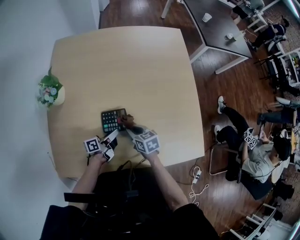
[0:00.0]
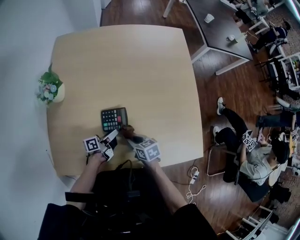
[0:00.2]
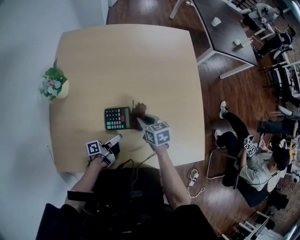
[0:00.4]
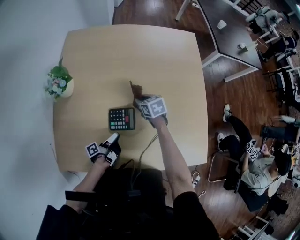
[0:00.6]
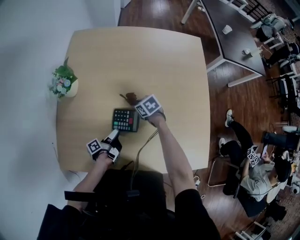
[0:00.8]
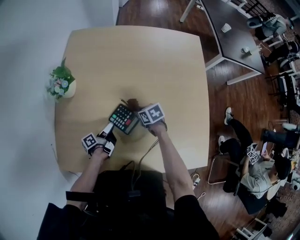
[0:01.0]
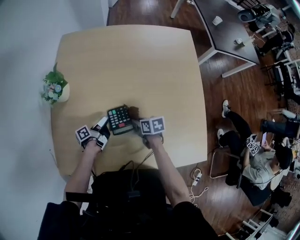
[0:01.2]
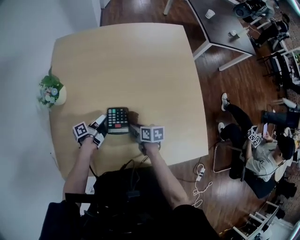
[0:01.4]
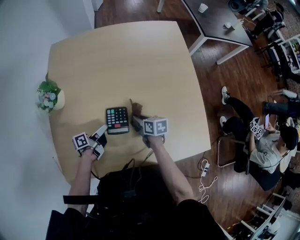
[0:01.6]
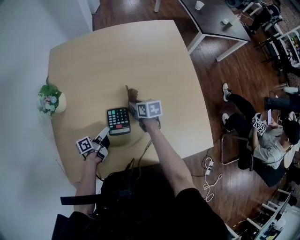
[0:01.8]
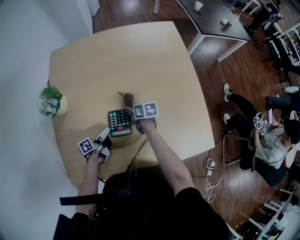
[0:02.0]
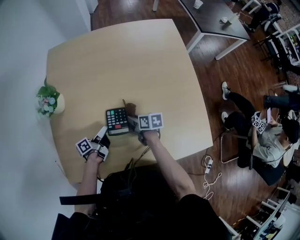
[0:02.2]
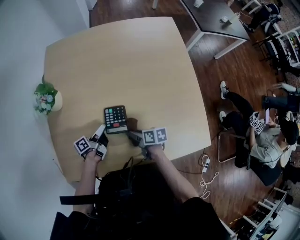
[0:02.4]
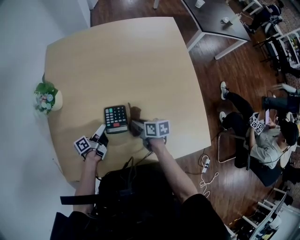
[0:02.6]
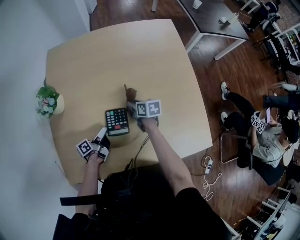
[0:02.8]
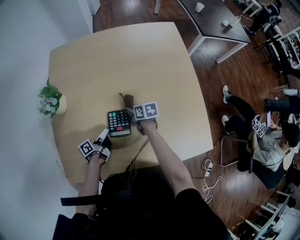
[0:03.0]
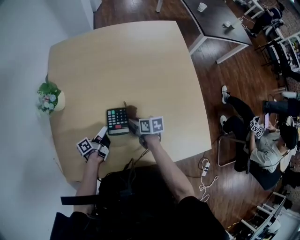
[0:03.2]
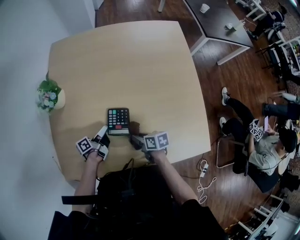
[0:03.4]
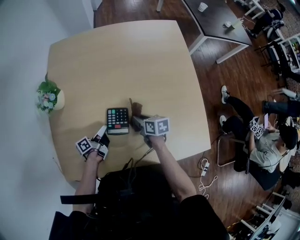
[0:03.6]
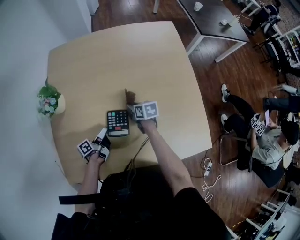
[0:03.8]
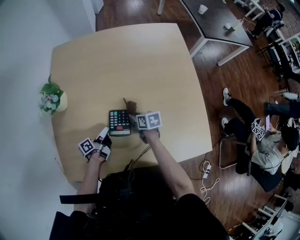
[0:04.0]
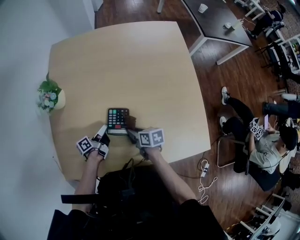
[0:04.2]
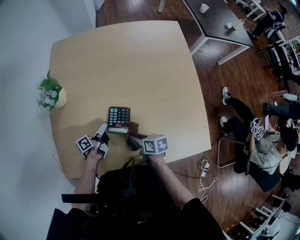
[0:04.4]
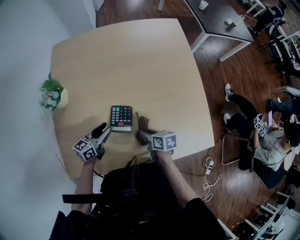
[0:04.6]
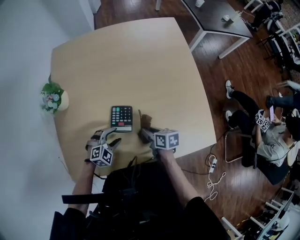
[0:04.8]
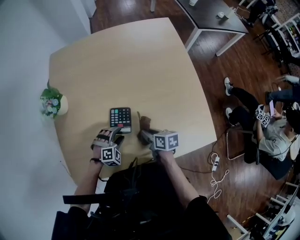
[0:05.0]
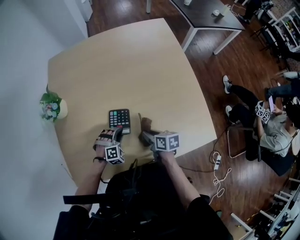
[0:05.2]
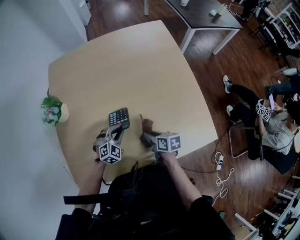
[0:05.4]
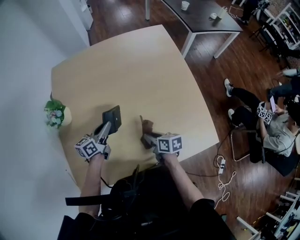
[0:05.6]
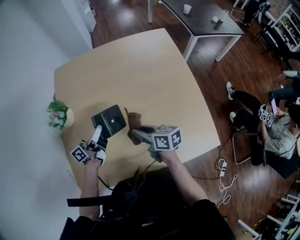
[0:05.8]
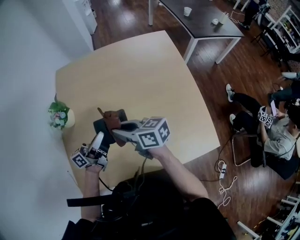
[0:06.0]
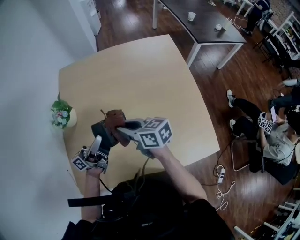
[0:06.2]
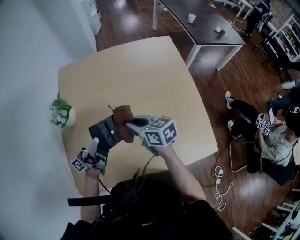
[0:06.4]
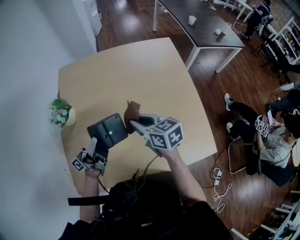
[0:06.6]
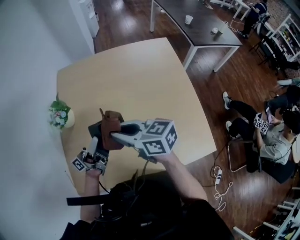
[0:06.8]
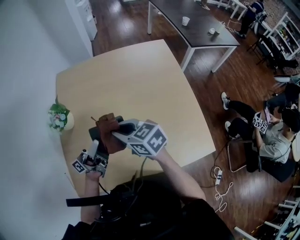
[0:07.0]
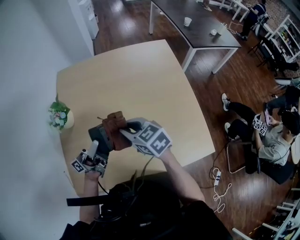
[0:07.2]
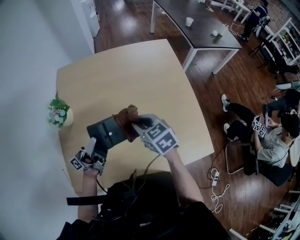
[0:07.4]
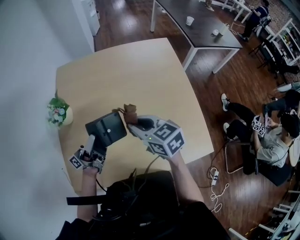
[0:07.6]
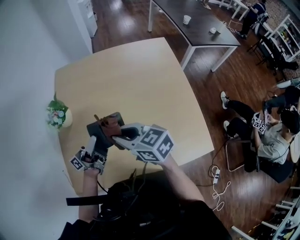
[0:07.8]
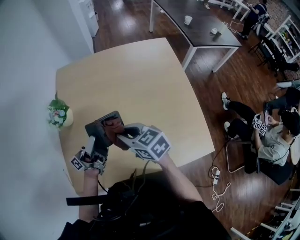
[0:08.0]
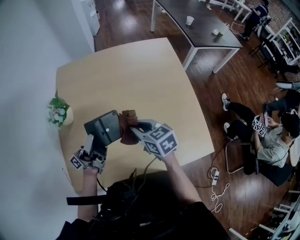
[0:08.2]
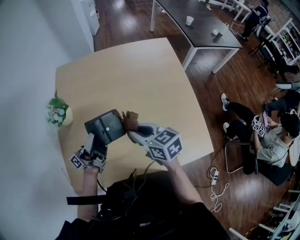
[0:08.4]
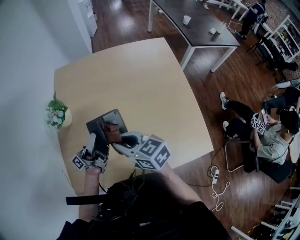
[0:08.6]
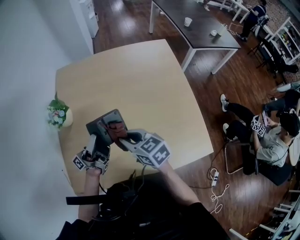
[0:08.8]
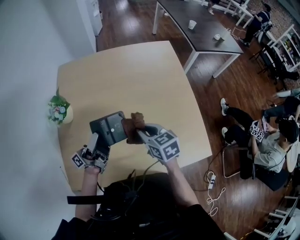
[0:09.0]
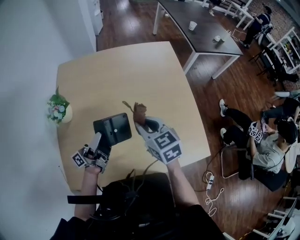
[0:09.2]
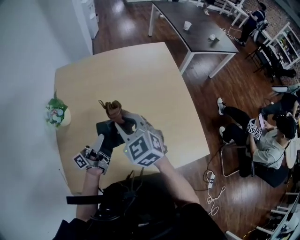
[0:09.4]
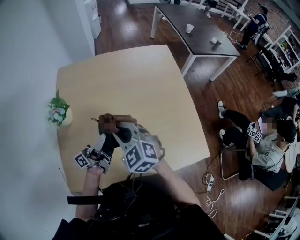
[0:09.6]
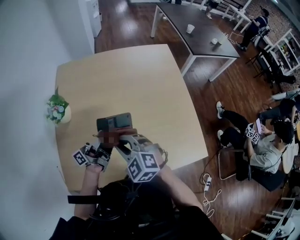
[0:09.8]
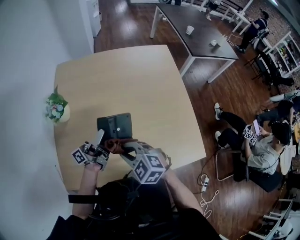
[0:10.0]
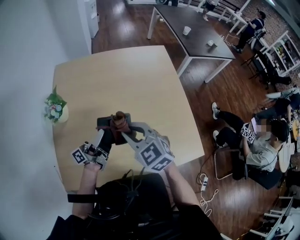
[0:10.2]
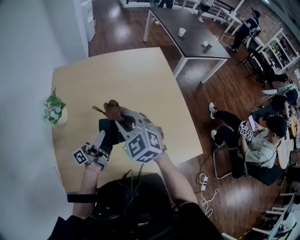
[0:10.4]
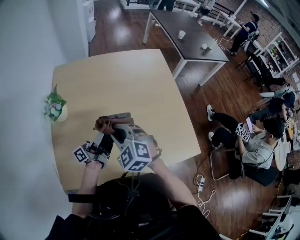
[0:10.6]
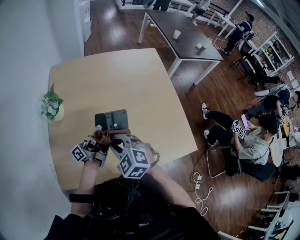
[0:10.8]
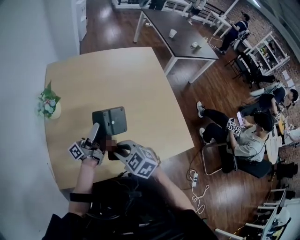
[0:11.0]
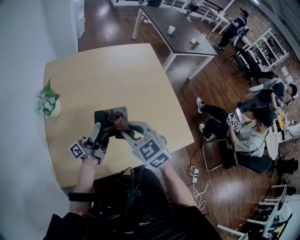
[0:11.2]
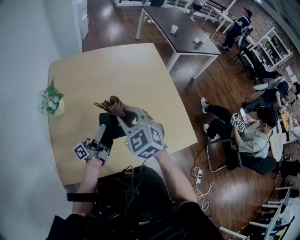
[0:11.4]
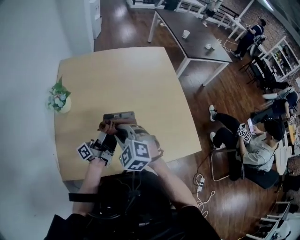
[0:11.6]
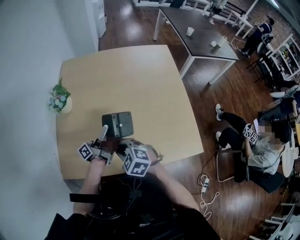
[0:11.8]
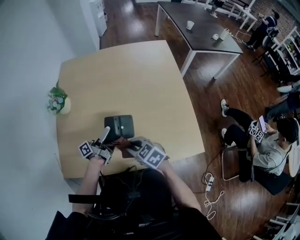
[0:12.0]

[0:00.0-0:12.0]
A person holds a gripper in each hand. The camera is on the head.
0:00.0 to 0:01.6: The right gripper swivels some 20 degrees.
0:01.6 to 0:03.0: The right gripper shifts by roughly 5 cm.
0:03.0 to 0:04.4: The right gripper moves about 15 cm.
0:04.4 to 0:06.0: The right gripper travels upward by about 20 cm, and changes its angle by about 30 degrees.
0:06.0 to 0:07.6: The right gripper swings up and down, approximately 10 cm each way, with 2 reversals, and turns by some 30 degrees.
0:07.6 to 0:09.0: The right gripper moves up and down over roughly 10 cm, changing direction 2 times.
0:09.0 to 0:10.4: The right gripper moves up and down over some 10 cm, changing direction 2 times, and rolls counterclockwise, seen from behind, by some 40 degrees.
0:10.4 to 0:12.0: The right gripper moves up and down over approximately 15 cm, changing direction 2 times, and rotates approximately 40 degrees.

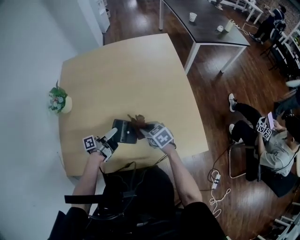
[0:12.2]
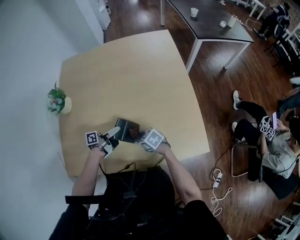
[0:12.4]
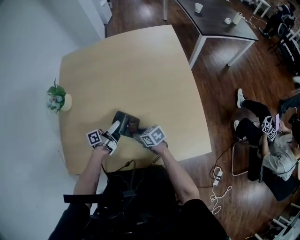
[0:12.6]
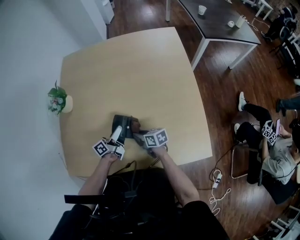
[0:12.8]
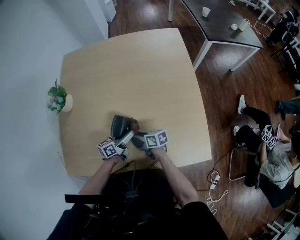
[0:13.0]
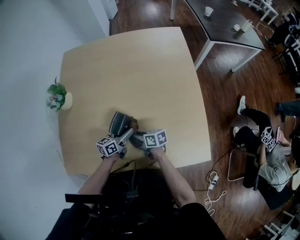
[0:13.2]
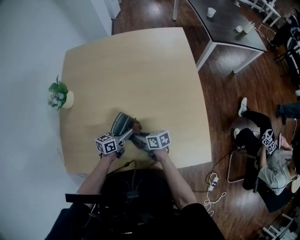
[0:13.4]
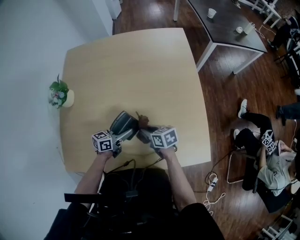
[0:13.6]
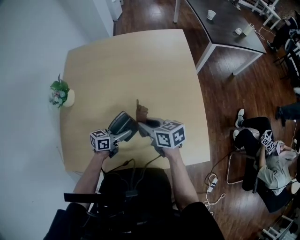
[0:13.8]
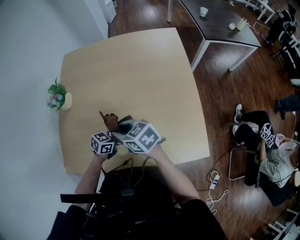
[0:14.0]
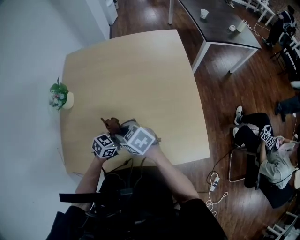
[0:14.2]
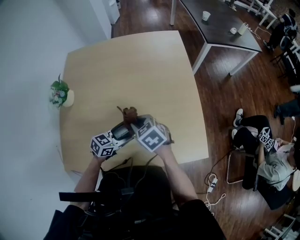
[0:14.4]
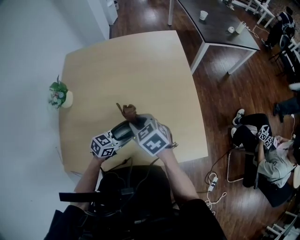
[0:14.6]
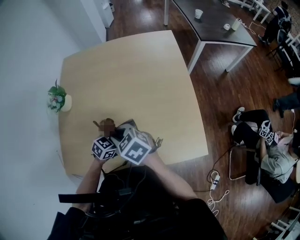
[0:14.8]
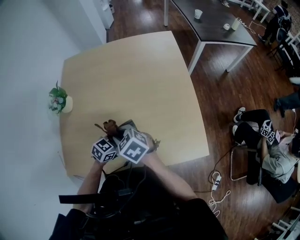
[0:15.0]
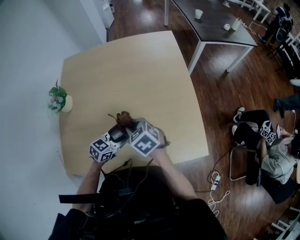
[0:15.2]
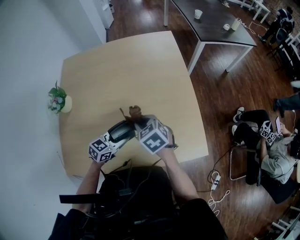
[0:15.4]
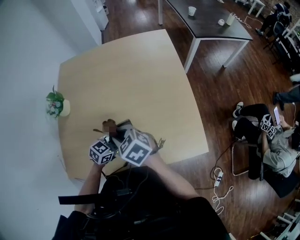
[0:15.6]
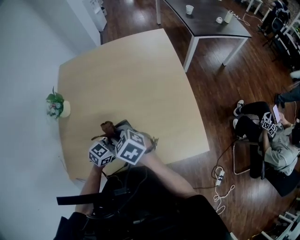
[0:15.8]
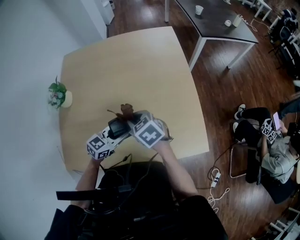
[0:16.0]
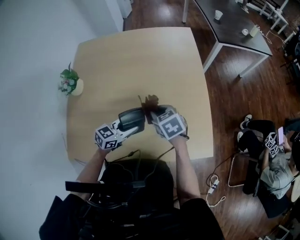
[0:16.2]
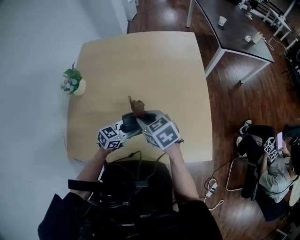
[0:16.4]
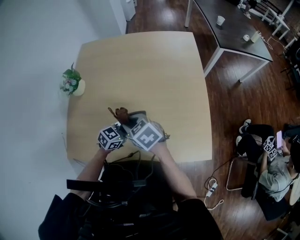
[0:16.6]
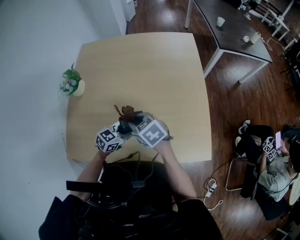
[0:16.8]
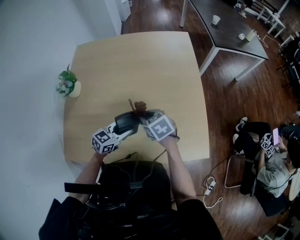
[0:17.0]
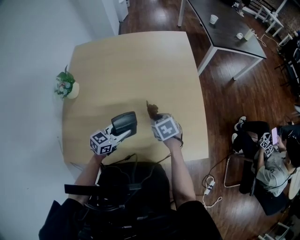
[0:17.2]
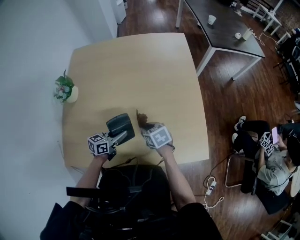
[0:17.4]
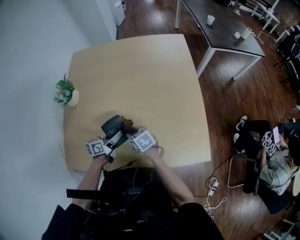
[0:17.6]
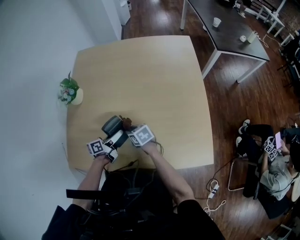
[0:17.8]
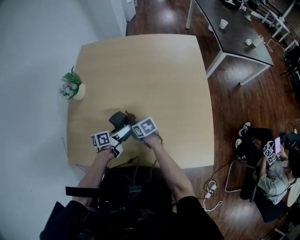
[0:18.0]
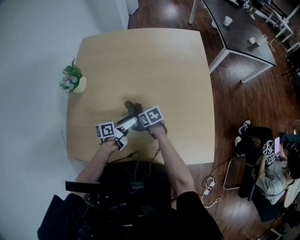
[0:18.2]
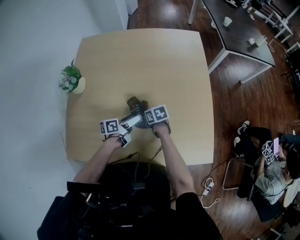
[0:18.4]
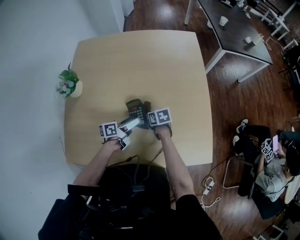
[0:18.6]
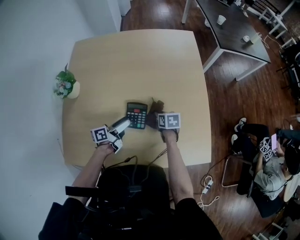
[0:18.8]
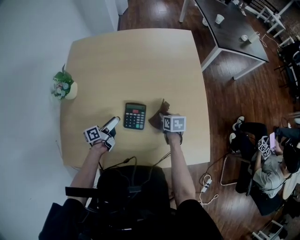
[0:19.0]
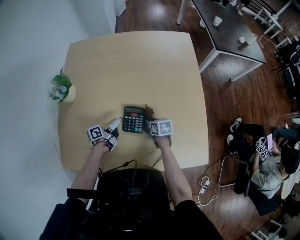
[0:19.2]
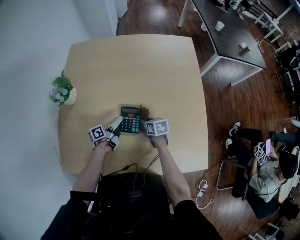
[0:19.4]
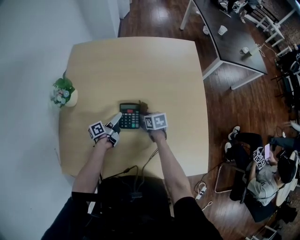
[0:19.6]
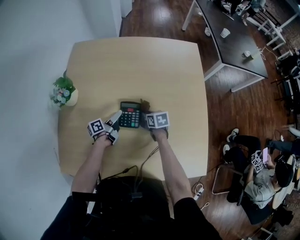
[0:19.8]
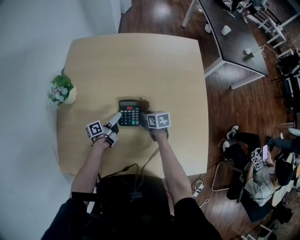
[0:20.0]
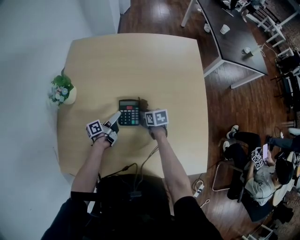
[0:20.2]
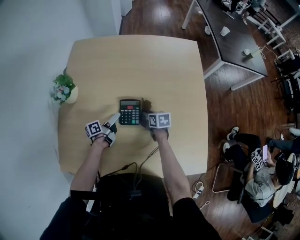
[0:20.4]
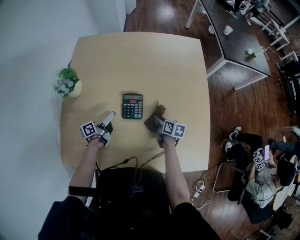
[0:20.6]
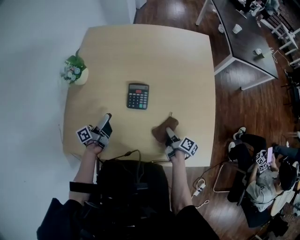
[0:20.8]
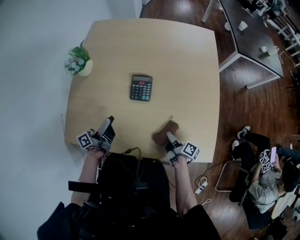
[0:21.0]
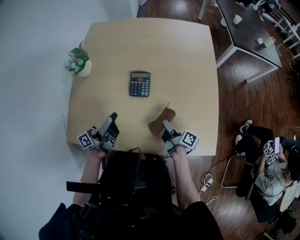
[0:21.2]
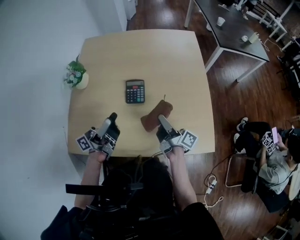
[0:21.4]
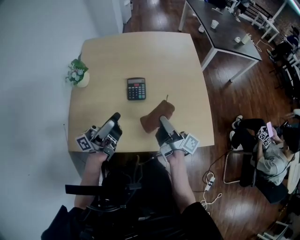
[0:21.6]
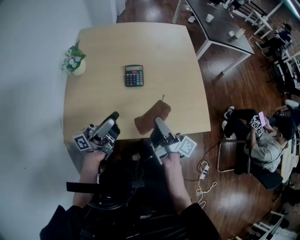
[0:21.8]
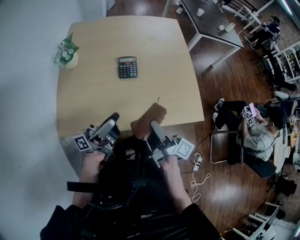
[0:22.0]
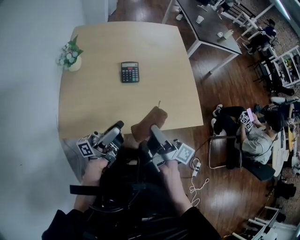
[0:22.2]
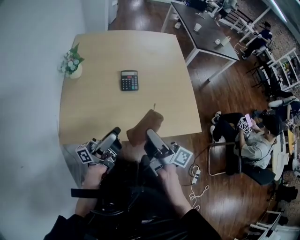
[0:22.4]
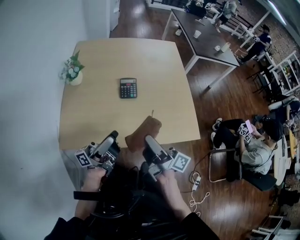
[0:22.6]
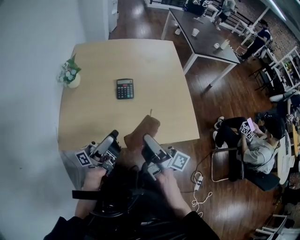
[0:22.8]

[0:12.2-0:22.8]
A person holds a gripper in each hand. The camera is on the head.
0:12.2 to 0:13.8: The right gripper travels upward by about 10 cm, and turns by roughly 30 degrees.
0:13.8 to 0:15.2: The right gripper goes up and down, some 5 cm each way, reversing 3 times, and changes its angle by roughly 40 degrees.
0:15.2 to 0:16.8: The right gripper moves up and down over roughly 5 cm, changing direction 2 times.
0:16.8 to 0:18.2: The right gripper moves downward, roughly 20 cm, and changes its angle by approximately 20 degrees.
0:18.2 to 0:19.8: The right gripper moves roughly 15 cm.
0:19.8 to 0:21.2: The right gripper shifts by roughly 25 cm, and tilts its fingers about 40 degrees upward.
0:21.2 to 0:22.8: The right gripper shifts about 25 cm upward, and rotates about 30 degrees.

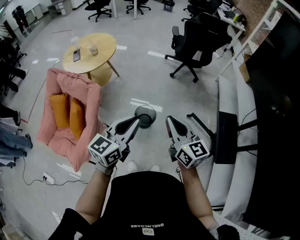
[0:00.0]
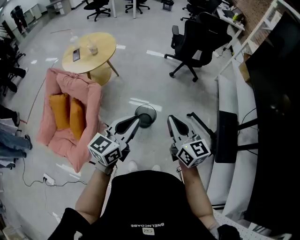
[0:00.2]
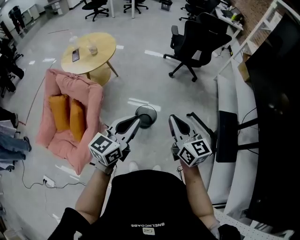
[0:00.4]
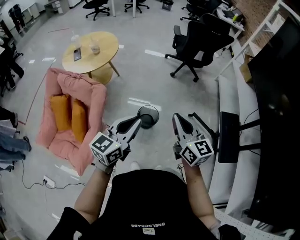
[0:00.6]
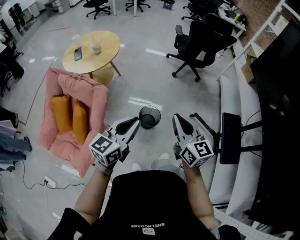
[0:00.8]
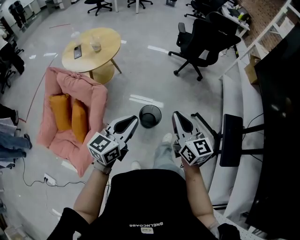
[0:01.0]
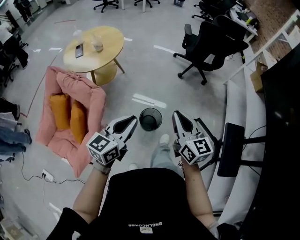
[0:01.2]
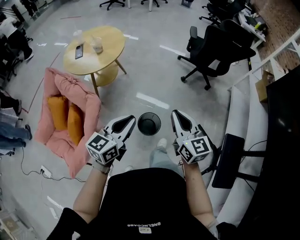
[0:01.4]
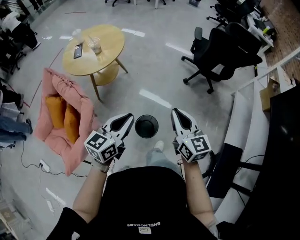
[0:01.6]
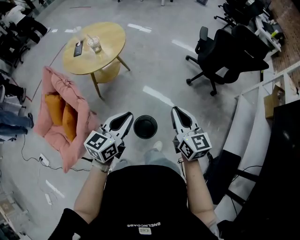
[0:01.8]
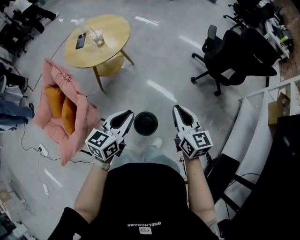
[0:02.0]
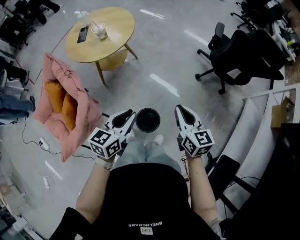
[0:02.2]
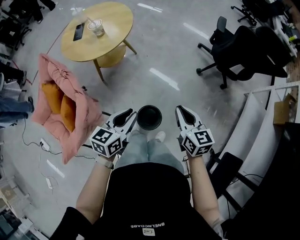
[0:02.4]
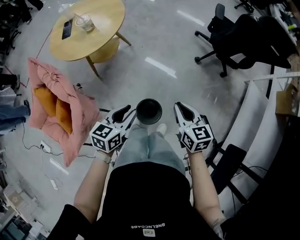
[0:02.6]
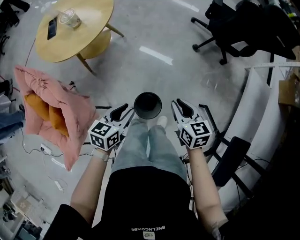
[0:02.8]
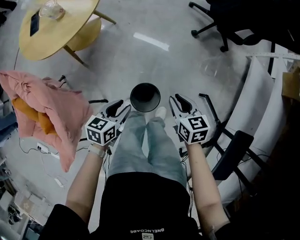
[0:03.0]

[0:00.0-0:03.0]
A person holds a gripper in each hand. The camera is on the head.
0:00.0 to 0:01.6: Both grippers travel together forward, some 25 cm.
0:01.6 to 0:03.0: The two grippers go about 30 cm downward. The right gripper tilts its fingers some 30 degrees downward. Meanwhile the left gripper changes its angle by approximately 30 degrees, and opens up.
